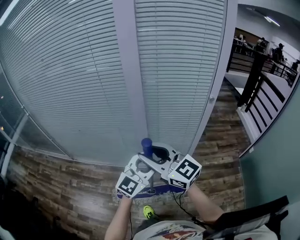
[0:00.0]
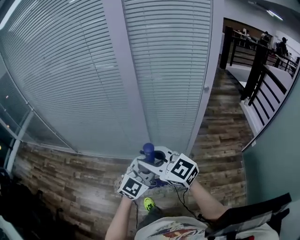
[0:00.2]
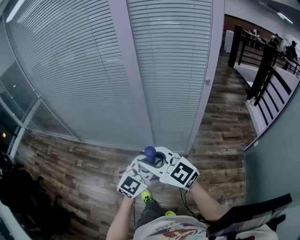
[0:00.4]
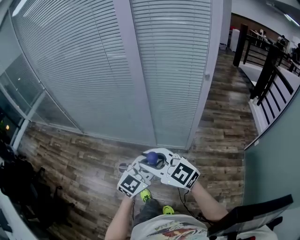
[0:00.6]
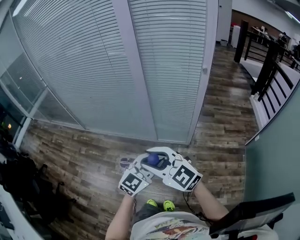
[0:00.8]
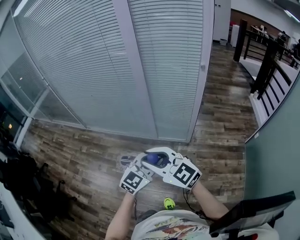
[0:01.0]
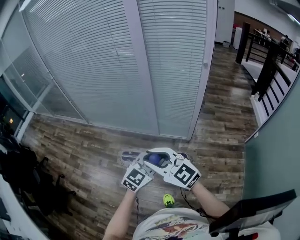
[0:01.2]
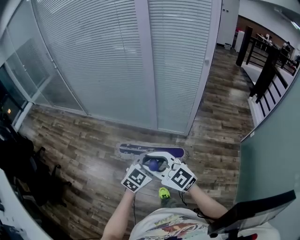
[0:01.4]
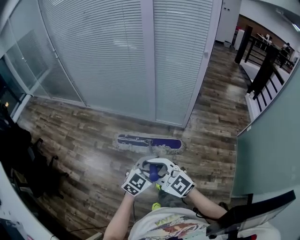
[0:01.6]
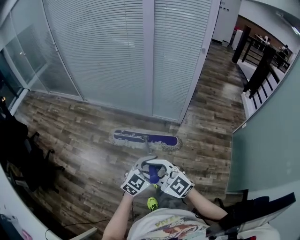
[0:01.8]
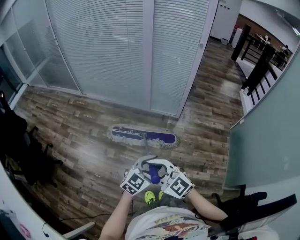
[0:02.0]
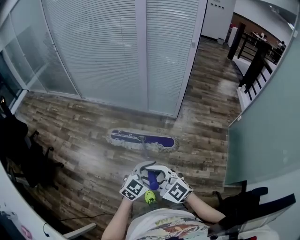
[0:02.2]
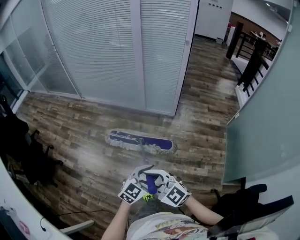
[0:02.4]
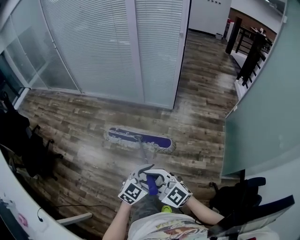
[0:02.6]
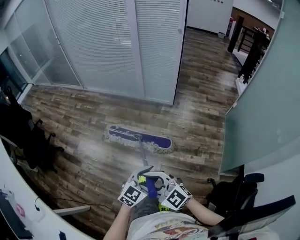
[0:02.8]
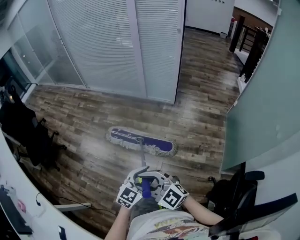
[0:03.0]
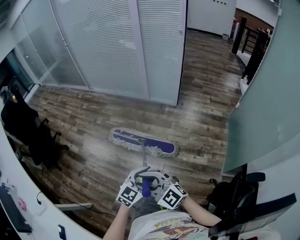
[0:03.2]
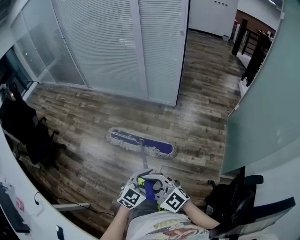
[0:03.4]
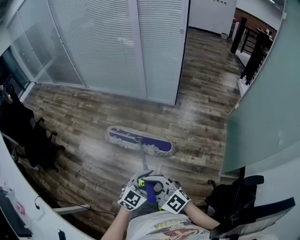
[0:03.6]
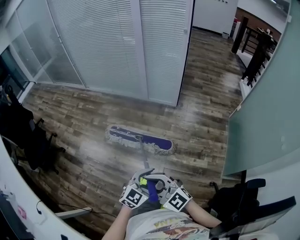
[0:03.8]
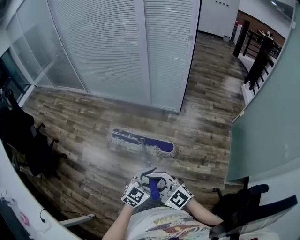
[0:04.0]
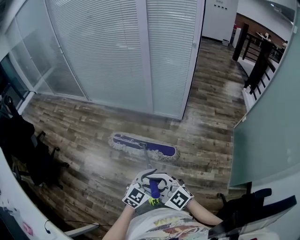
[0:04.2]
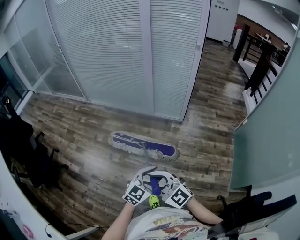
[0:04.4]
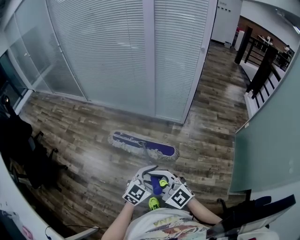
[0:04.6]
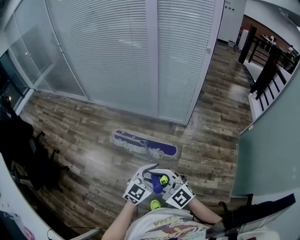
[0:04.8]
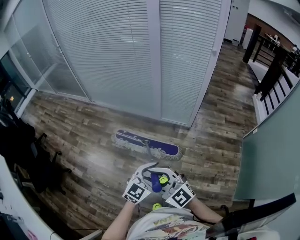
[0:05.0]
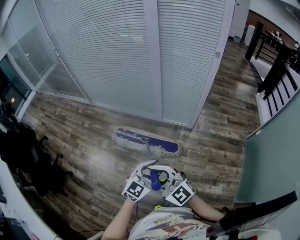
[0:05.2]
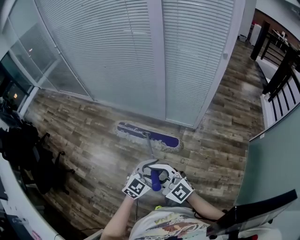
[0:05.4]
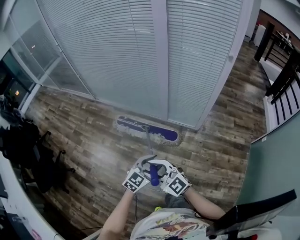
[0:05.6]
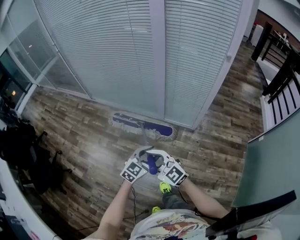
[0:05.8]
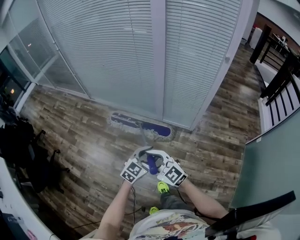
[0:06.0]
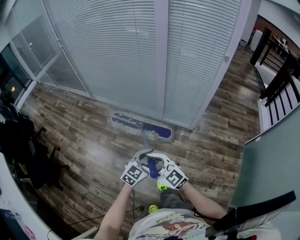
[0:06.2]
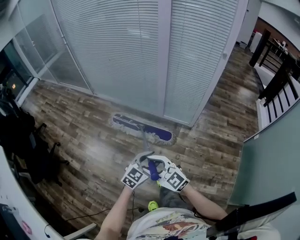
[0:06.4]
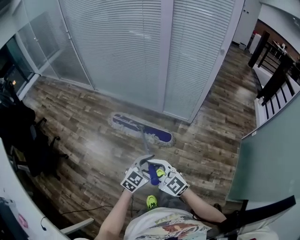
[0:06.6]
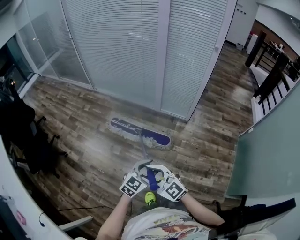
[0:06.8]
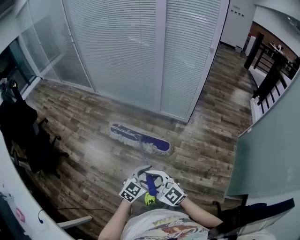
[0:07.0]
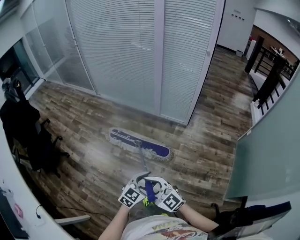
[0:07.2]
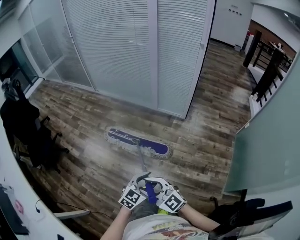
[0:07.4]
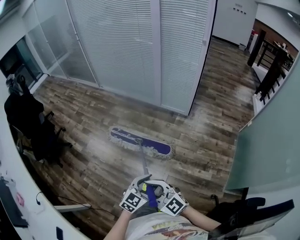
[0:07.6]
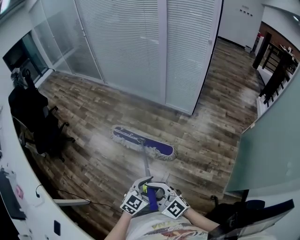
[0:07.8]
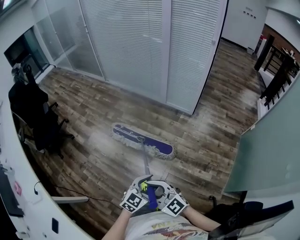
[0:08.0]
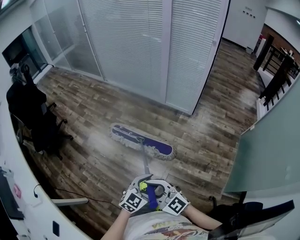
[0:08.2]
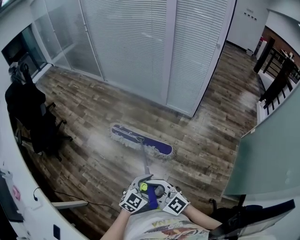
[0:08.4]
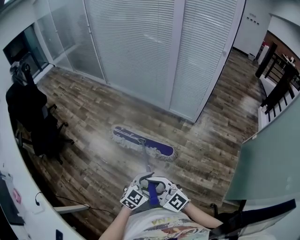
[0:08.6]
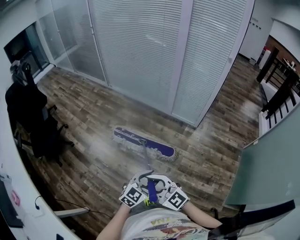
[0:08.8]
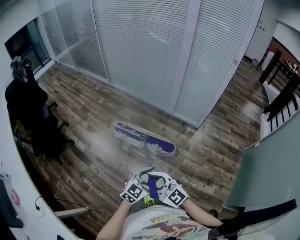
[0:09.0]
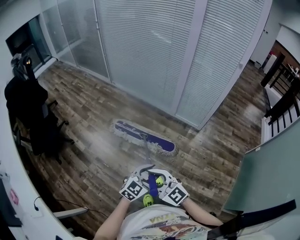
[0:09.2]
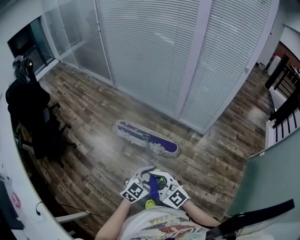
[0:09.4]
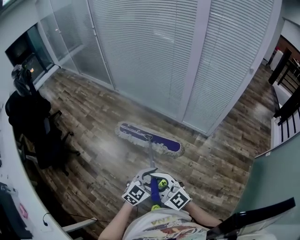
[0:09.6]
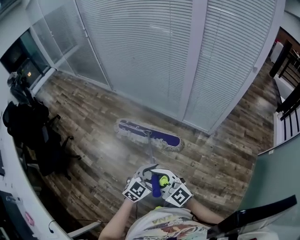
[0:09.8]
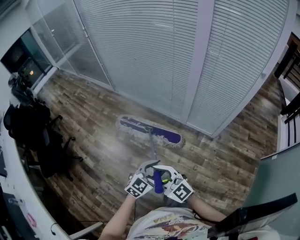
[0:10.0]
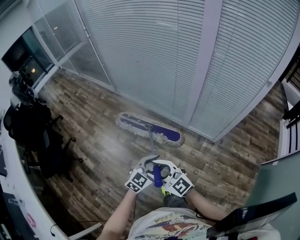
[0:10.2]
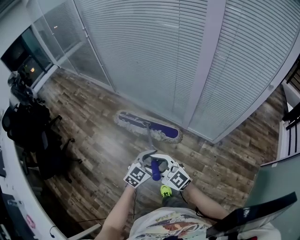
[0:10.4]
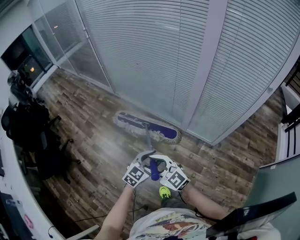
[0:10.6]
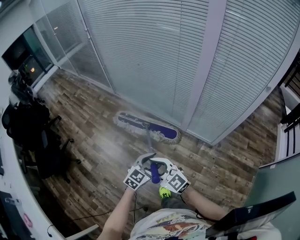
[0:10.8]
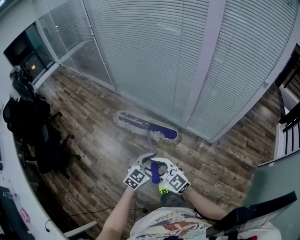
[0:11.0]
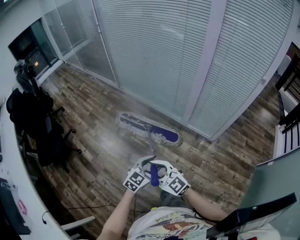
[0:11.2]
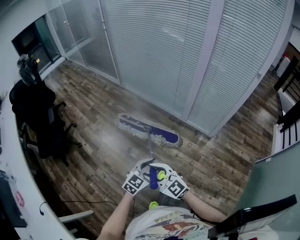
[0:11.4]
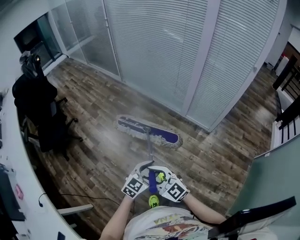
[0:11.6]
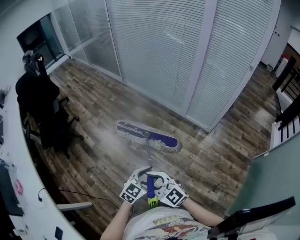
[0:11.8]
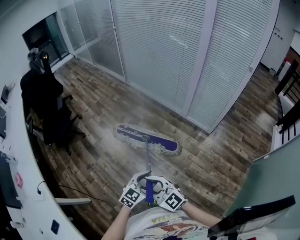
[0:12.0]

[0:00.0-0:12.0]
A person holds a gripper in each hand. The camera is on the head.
0:00.0 to 0:01.6: The pair of grippers is taken backward, approximately 50 cm. The right gripper swivels some 30 degrees. Meanwhile the left gripper swivels roughly 30 degrees.
0:01.6 to 0:03.0: Both grippers are carried backward, about 50 cm.
0:03.0 to 0:04.4: The grippers both shift forward by roughly 30 cm.
0:04.4 to 0:06.0: Both grippers are carried forward, approximately 40 cm.
0:06.0 to 0:07.6: Both grippers are carried backward, some 60 cm.
0:07.6 to 0:09.0: The two grippers go approximately 25 cm forward and to the left.
0:09.0 to 0:10.4: Both grippers are carried forward, some 50 cm.
0:10.4 to 0:12.0: The pair of grippers is taken backward, approximately 50 cm.

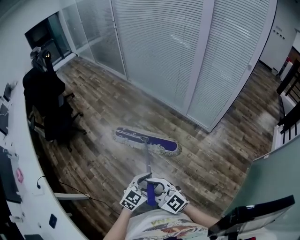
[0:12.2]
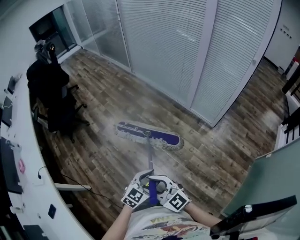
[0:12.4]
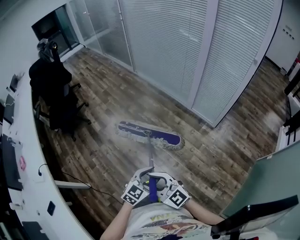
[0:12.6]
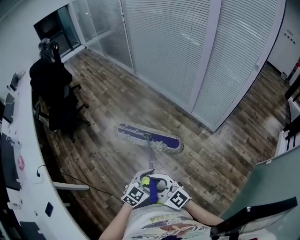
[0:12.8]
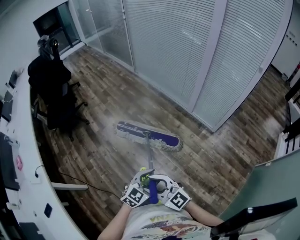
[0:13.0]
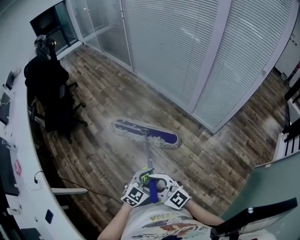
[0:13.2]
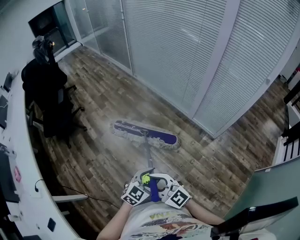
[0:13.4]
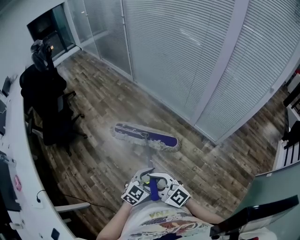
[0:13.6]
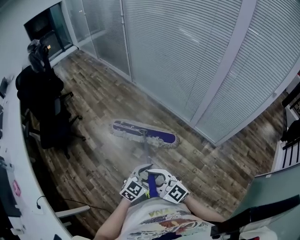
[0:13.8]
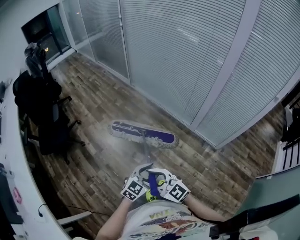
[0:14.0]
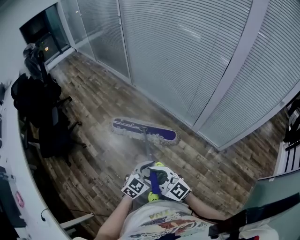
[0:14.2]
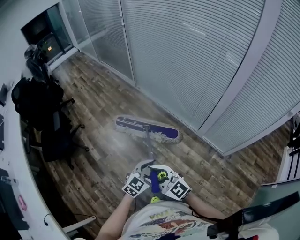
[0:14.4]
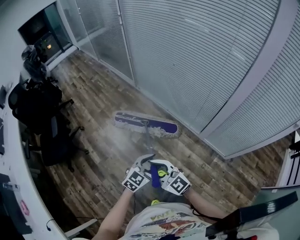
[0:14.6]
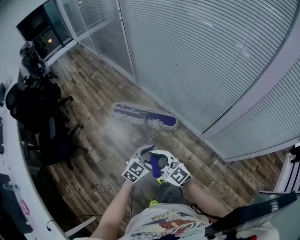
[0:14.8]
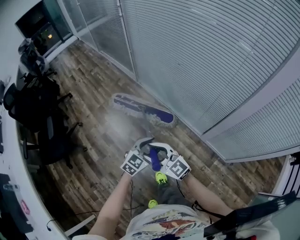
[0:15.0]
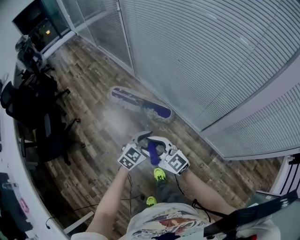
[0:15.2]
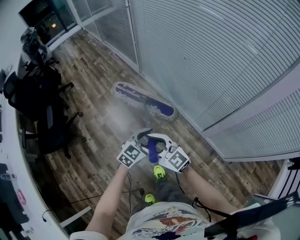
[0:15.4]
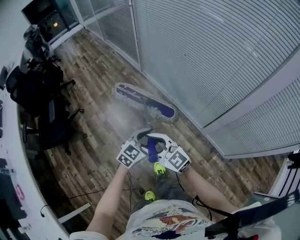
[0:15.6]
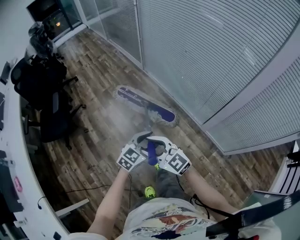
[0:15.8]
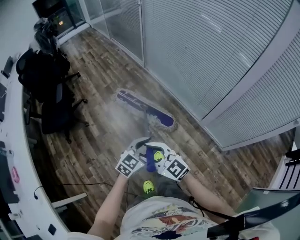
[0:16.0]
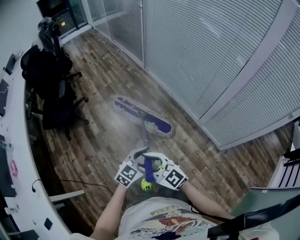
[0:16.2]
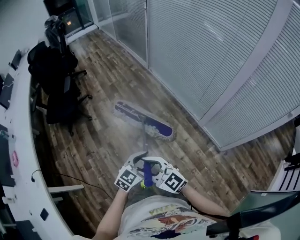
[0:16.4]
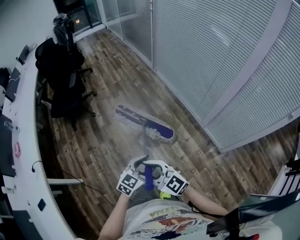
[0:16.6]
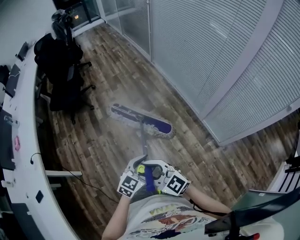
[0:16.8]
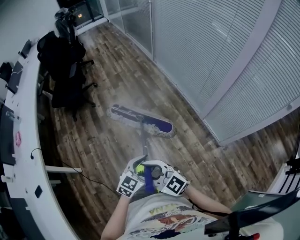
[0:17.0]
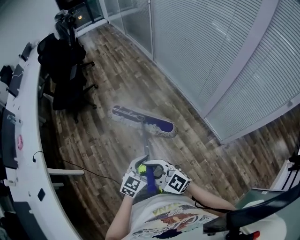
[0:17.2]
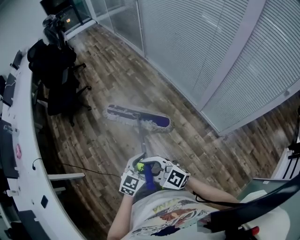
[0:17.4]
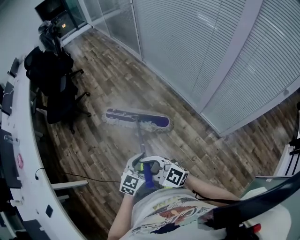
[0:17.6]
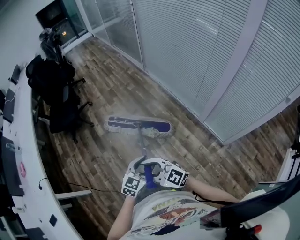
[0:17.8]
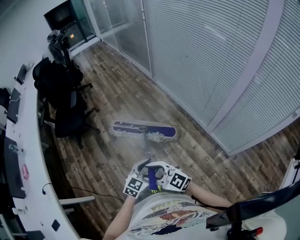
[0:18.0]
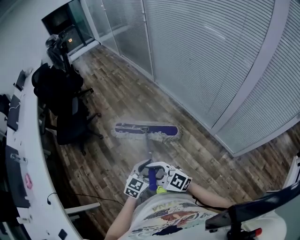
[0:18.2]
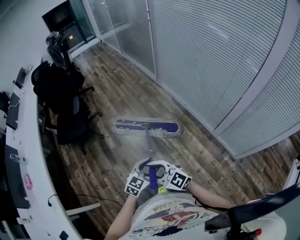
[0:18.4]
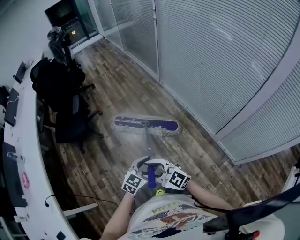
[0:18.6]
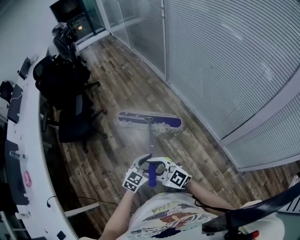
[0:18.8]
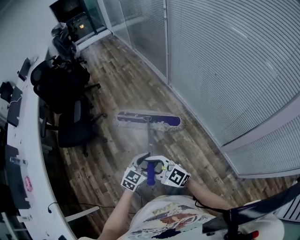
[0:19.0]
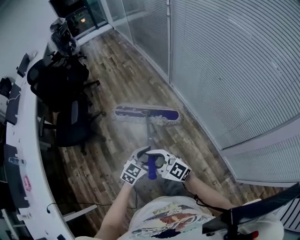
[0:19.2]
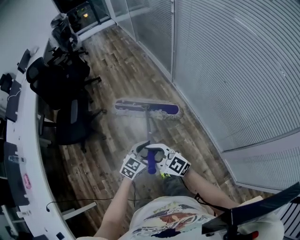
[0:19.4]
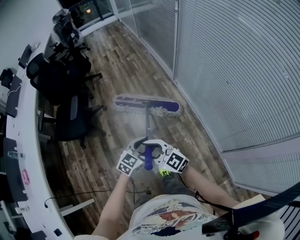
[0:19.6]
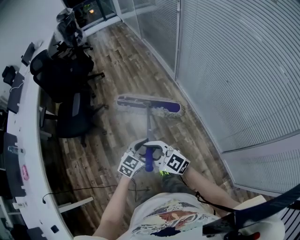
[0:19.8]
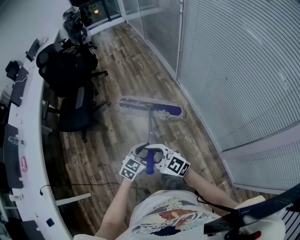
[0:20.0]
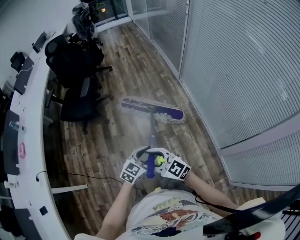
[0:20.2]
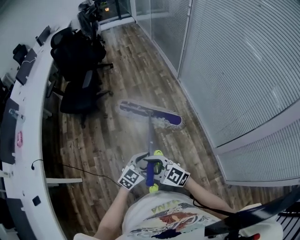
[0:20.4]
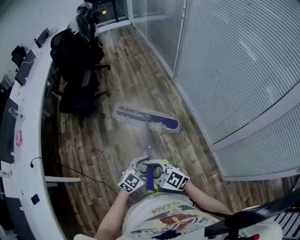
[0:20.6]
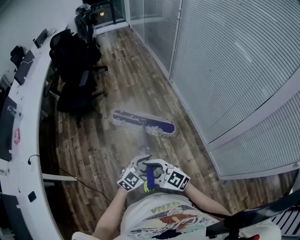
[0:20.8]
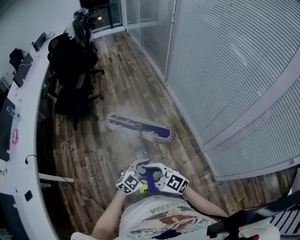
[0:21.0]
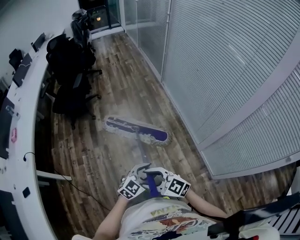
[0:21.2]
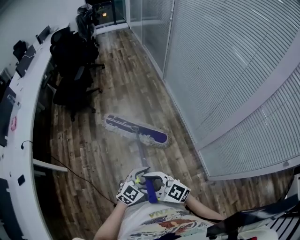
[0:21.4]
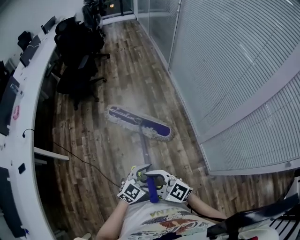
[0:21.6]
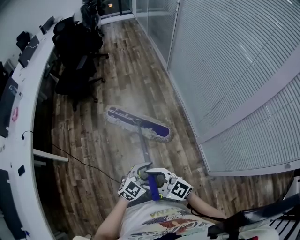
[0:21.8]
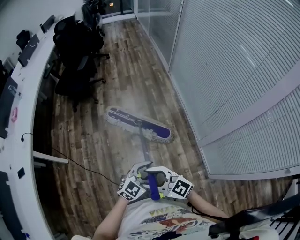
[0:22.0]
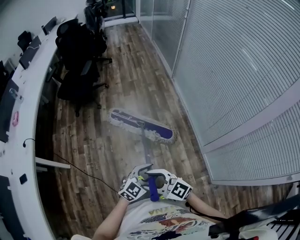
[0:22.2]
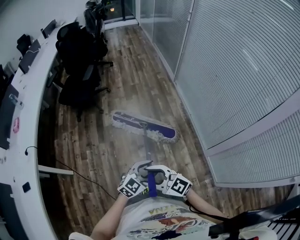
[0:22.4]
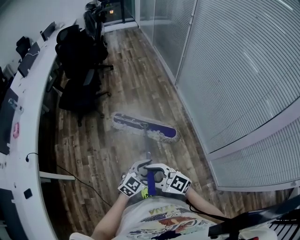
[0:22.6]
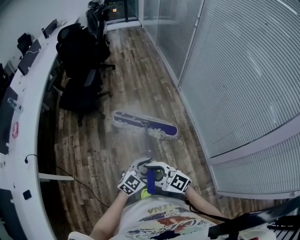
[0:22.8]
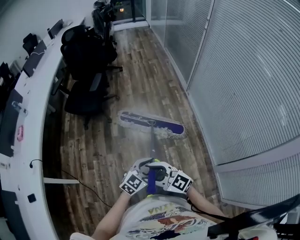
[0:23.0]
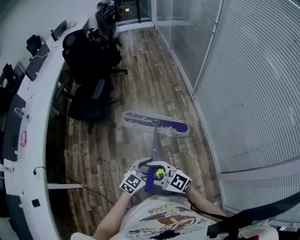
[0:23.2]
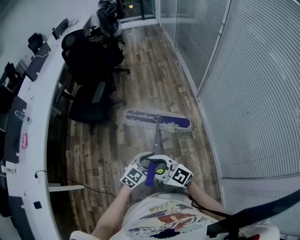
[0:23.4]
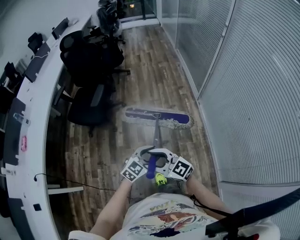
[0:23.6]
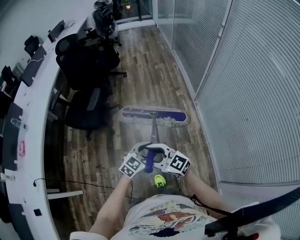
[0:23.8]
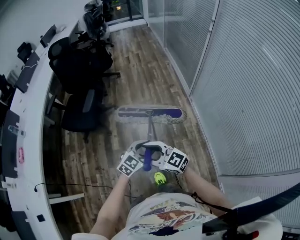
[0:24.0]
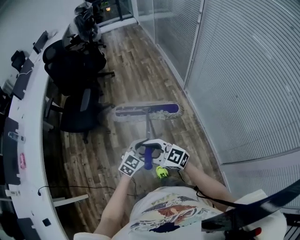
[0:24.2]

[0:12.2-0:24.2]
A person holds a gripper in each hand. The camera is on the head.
0:12.2 to 0:13.8: The two grippers go some 30 cm forward.
0:13.8 to 0:15.2: The two grippers travel together, forward, some 60 cm.
0:15.2 to 0:16.6: The pair of grippers is taken backward, roughly 60 cm. The right gripper turns by about 20 degrees; the left gripper turns by approximately 20 degrees.
0:16.6 to 0:18.2: Both grippers travel together forward, roughly 15 cm.
0:18.2 to 0:19.8: Both grippers are carried forward, approximately 40 cm.
0:19.8 to 0:21.2: The pair of grippers is taken some 60 cm.
0:21.2 to 0:22.6: The left gripper moves approximately 20 cm, while the right gripper ends up about 15 cm from where it was.
0:22.6 to 0:24.2: Both grippers are carried forward, some 40 cm.
